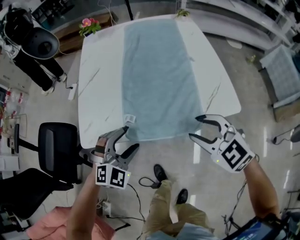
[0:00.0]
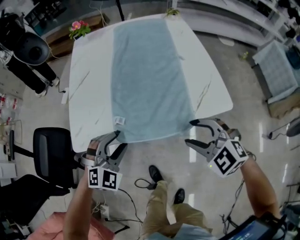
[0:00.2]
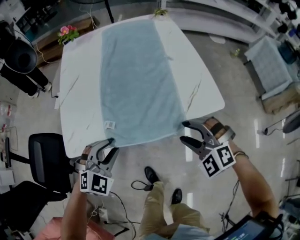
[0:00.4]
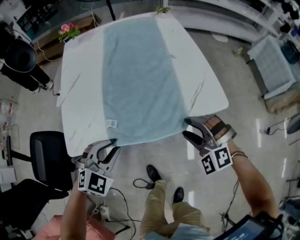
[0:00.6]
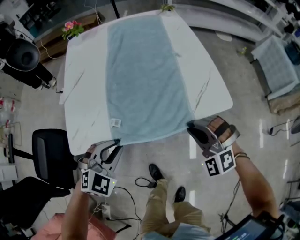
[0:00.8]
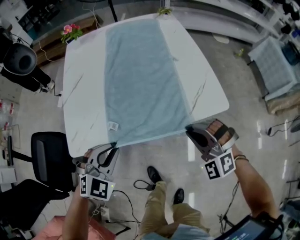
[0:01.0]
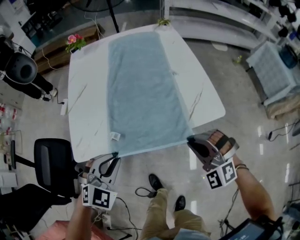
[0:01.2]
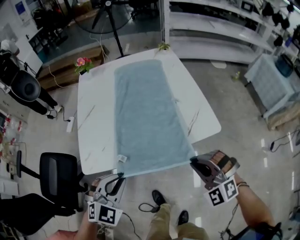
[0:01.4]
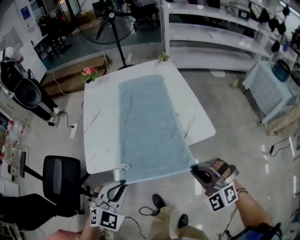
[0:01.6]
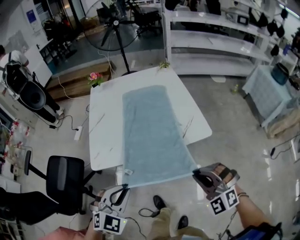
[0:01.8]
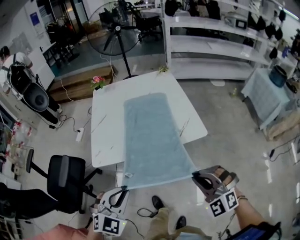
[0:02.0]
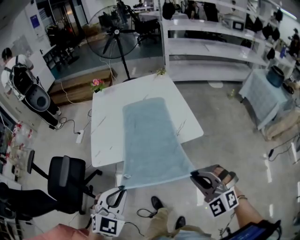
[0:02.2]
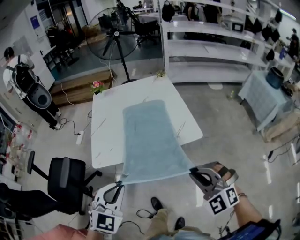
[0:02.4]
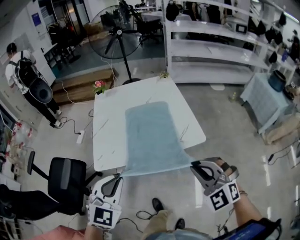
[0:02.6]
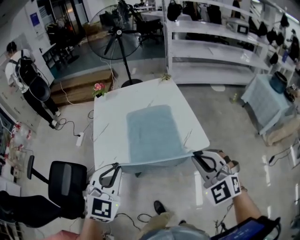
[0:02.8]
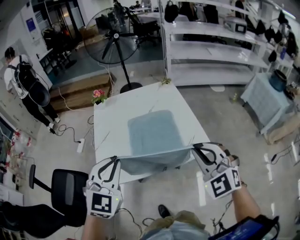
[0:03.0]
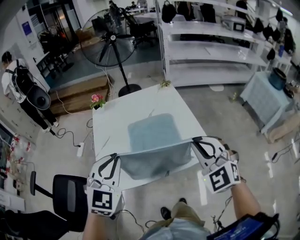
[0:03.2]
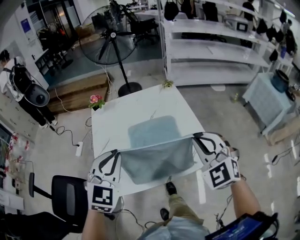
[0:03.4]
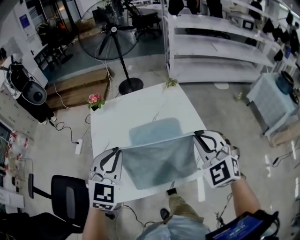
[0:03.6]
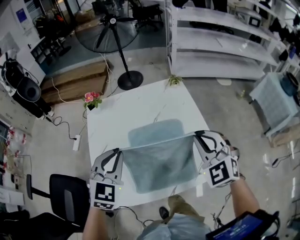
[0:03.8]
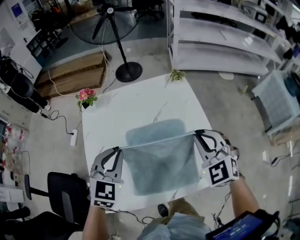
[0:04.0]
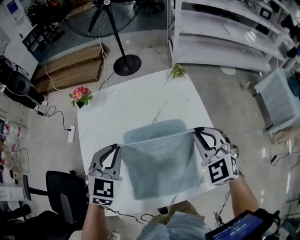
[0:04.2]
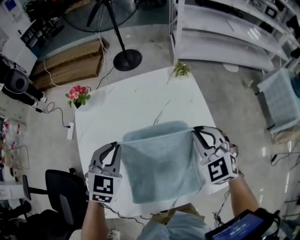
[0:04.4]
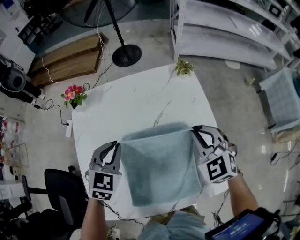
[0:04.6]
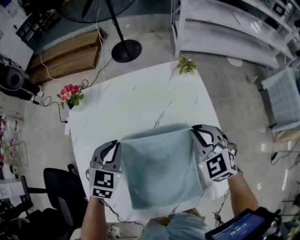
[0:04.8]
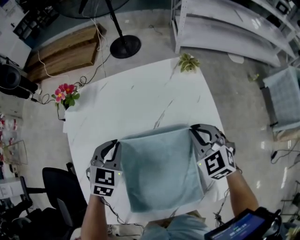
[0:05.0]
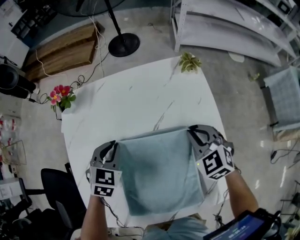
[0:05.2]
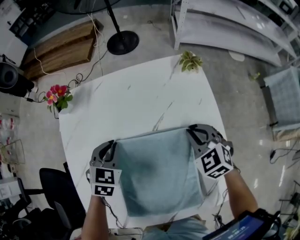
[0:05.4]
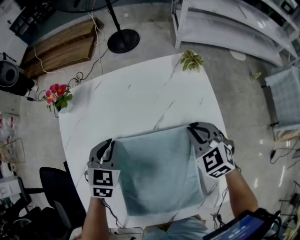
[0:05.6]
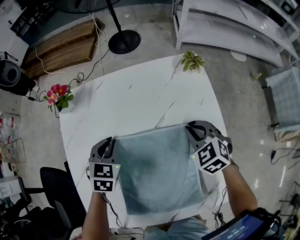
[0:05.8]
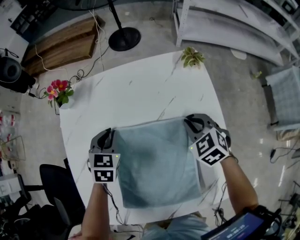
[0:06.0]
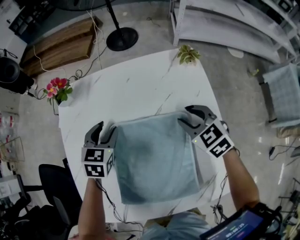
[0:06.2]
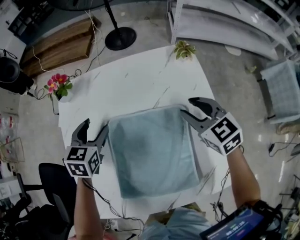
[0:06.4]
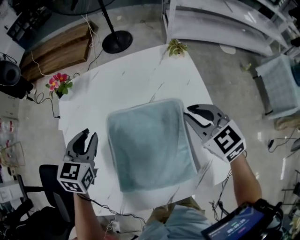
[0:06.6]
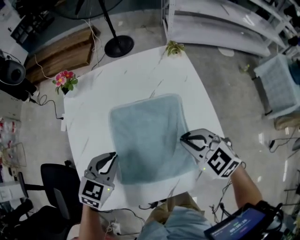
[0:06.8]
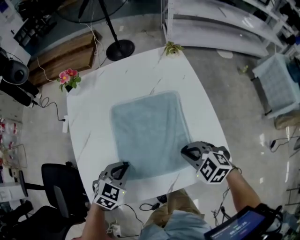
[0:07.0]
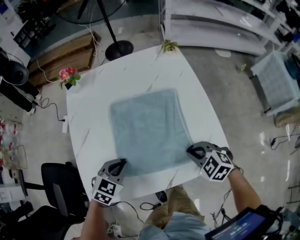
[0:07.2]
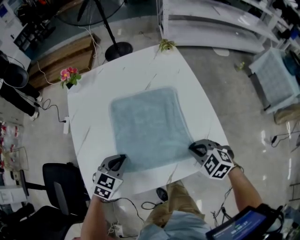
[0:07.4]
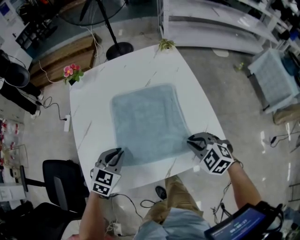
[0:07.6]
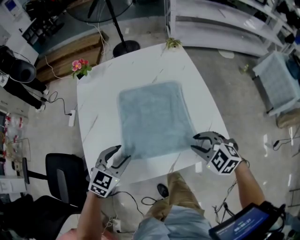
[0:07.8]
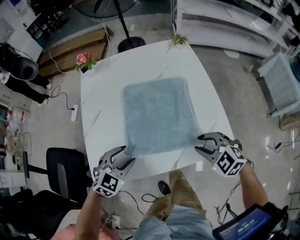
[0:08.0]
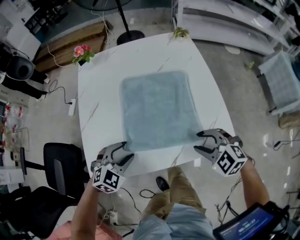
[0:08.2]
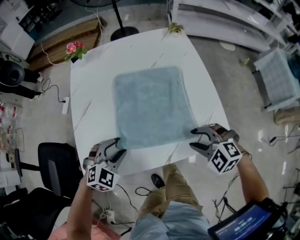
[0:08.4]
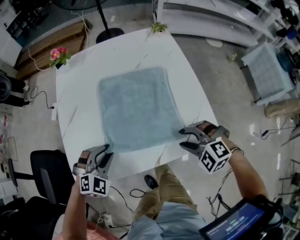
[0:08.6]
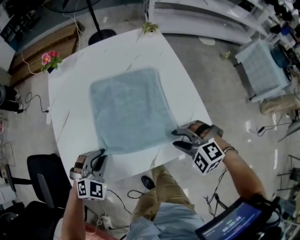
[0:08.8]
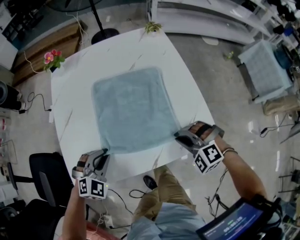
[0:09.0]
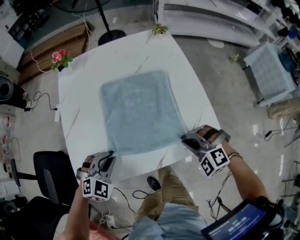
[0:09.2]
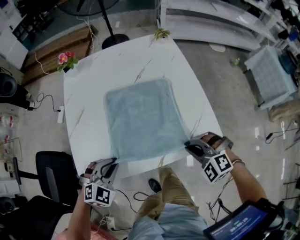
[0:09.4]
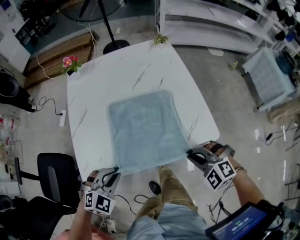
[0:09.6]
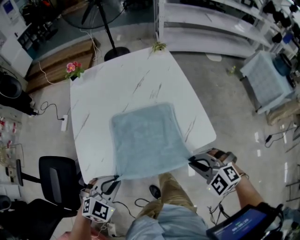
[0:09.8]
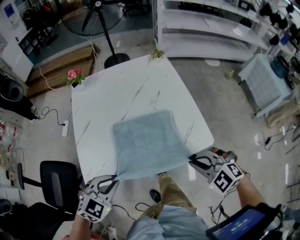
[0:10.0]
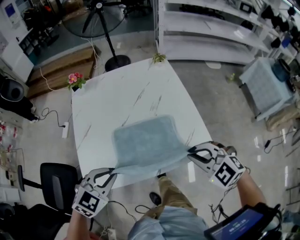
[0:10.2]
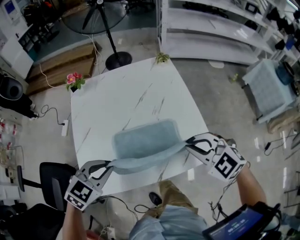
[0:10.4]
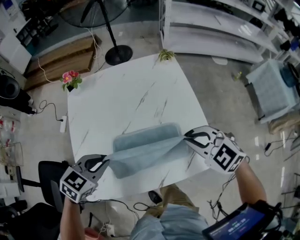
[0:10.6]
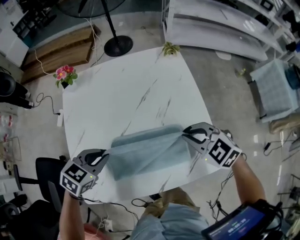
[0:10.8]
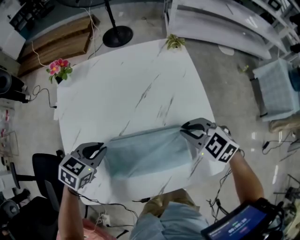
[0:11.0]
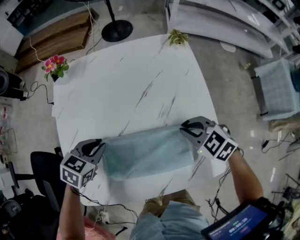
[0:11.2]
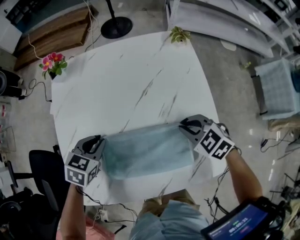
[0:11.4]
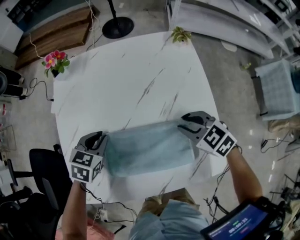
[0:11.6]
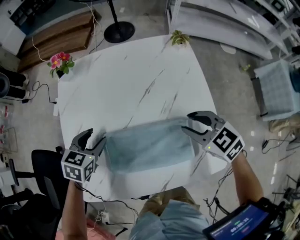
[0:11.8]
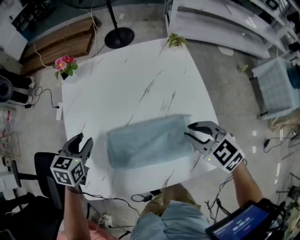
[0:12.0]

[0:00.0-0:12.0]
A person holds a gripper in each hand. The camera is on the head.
0:00.0 to 0:01.6: The right gripper is displaced backward by roughly 10 cm, turns by some 30 degrees, and closes up, while the left gripper goes some 15 cm upward and backward, and closes its fingers.
0:01.6 to 0:03.0: Both grippers travel together upward and forward, roughly 20 cm. The left gripper changes its angle by approximately 20 degrees; the right gripper changes its angle by about 20 degrees.
0:03.0 to 0:04.4: The left gripper moves forward and downward, approximately 35 cm, and rotates some 20 degrees. Meanwhile the right gripper travels forward by about 35 cm.
0:04.4 to 0:06.0: The two grippers go approximately 20 cm downward and forward. The left gripper changes its angle by about 20 degrees. Meanwhile the right gripper changes its angle by approximately 20 degrees.
0:06.0 to 0:07.6: Both grippers travel together backward, approximately 30 cm. The left gripper turns by about 30 degrees, and opens, then closes once more. The right gripper opens and closes again.
0:07.6 to 0:09.0: The left gripper moves backward, approximately 5 cm, swivels about 30 degrees, and opens and closes again; the right gripper rotates about 30 degrees, and opens, then closes again.
0:09.0 to 0:10.4: The grippers both shift upward by some 15 cm. The right gripper swivels about 30 degrees, while the left gripper swivels about 30 degrees.
0:10.4 to 0:12.0: The left gripper moves forward, to the left and downward, approximately 20 cm, turns by approximately 40 degrees, and opens up. Meanwhile the right gripper travels forward and downward by roughly 15 cm.

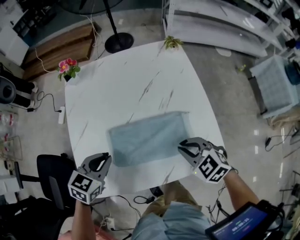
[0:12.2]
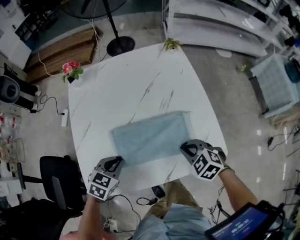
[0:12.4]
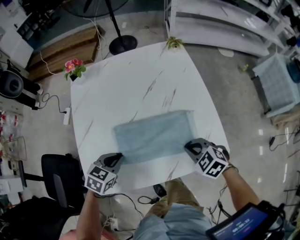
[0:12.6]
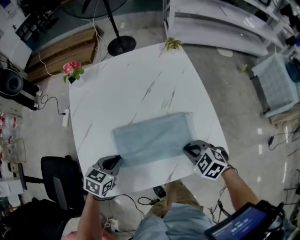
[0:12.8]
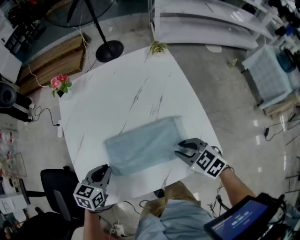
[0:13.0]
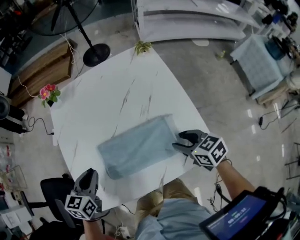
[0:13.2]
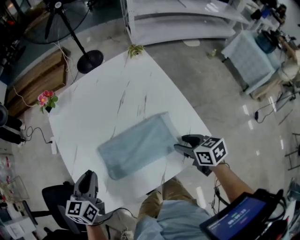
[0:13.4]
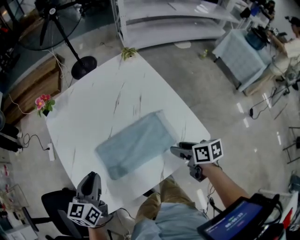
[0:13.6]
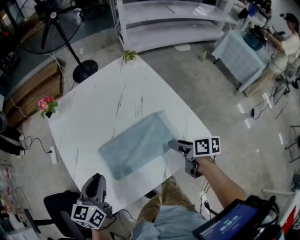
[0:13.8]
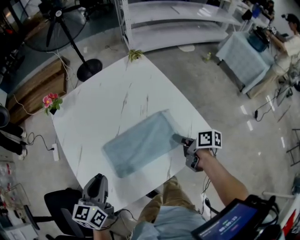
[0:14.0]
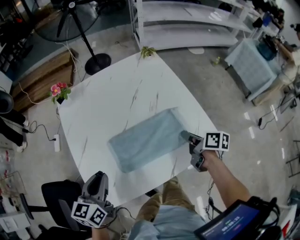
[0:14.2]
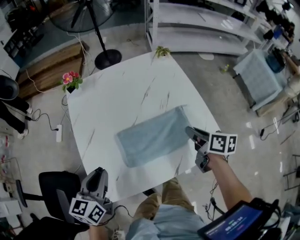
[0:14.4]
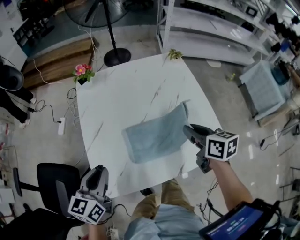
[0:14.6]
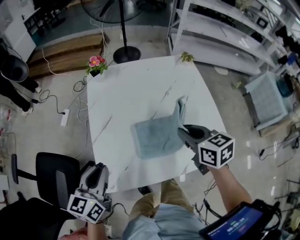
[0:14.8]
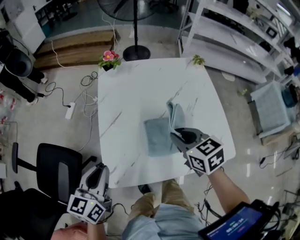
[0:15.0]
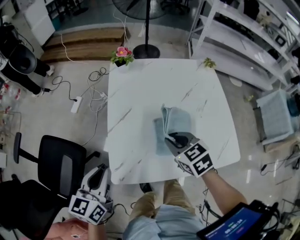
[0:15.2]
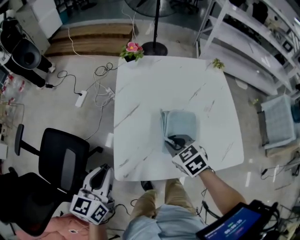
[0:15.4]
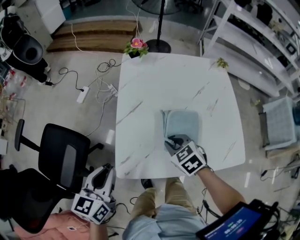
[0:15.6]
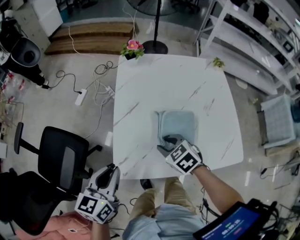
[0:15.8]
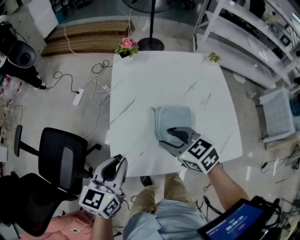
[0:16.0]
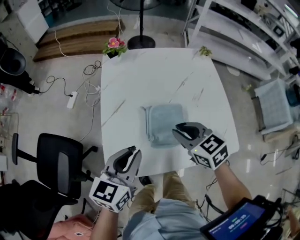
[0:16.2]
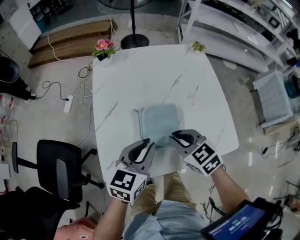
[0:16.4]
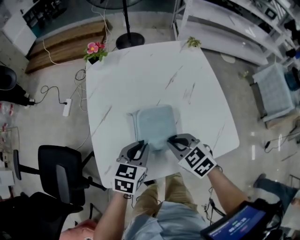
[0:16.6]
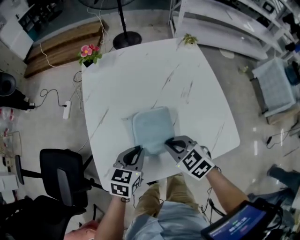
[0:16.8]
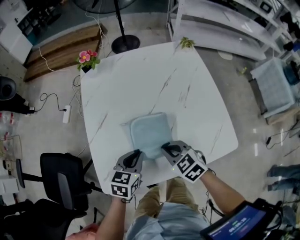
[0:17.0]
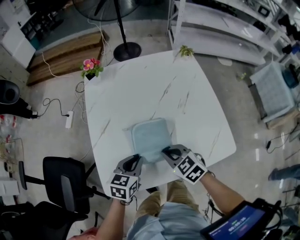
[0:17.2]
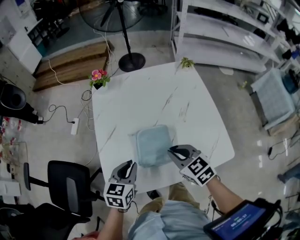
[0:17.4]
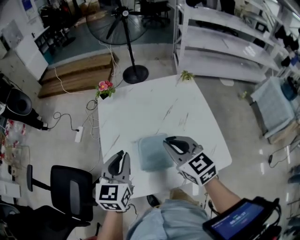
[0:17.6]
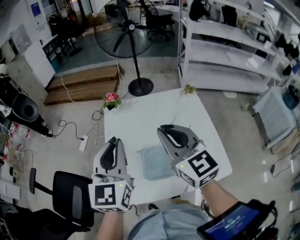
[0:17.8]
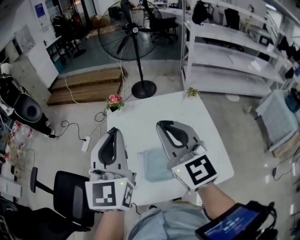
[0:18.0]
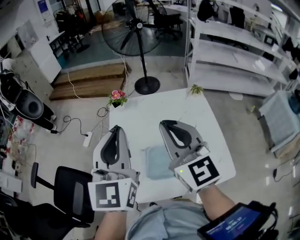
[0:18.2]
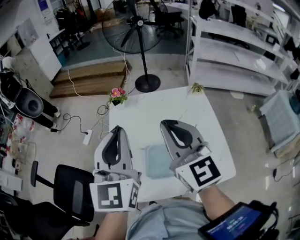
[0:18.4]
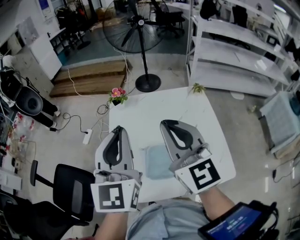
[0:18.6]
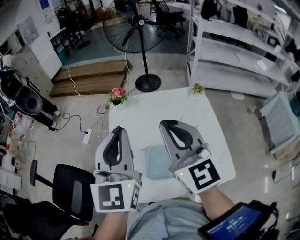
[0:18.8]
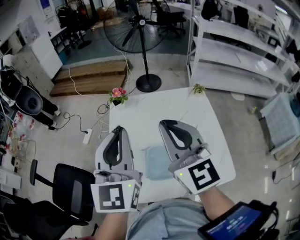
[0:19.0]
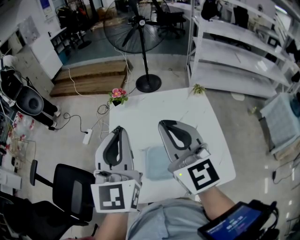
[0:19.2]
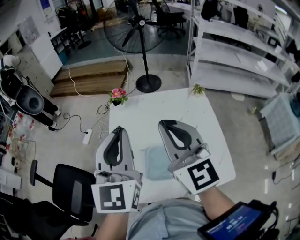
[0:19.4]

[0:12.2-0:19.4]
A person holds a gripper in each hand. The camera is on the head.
0:12.2 to 0:13.6: The right gripper is displaced to the right by approximately 5 cm, twists some 70 degrees clockwise, seen from behind, and opens its fingers. The left gripper is displaced upward by approximately 5 cm, and rotates approximately 20 degrees.
0:13.6 to 0:15.0: The left gripper moves to the left and backward, some 15 cm. The right gripper is displaced to the left and upward by roughly 25 cm, rolls counterclockwise, seen from behind, by about 50 degrees, and closes up.
0:15.0 to 0:16.6: The right gripper goes up and down, some 10 cm each way, reversing 2 times, and opens and closes again. Meanwhile the left gripper moves to the right and downward, approximately 20 cm, and rotates roughly 30 degrees.
0:16.6 to 0:18.0: Both grippers move upward, about 35 cm. The left gripper tips its fingers upward by roughly 40 degrees; the right gripper tips its fingers upward by about 50 degrees.
0:18.0 to 0:19.4: The grippers make only small movements.

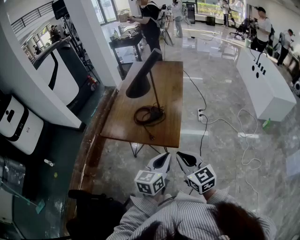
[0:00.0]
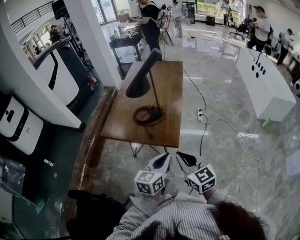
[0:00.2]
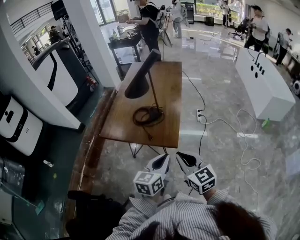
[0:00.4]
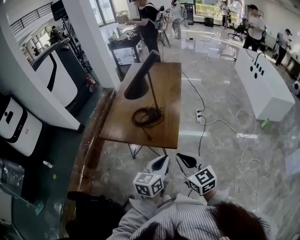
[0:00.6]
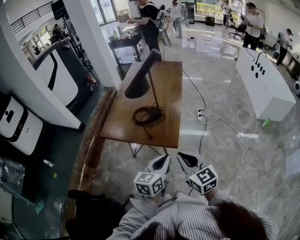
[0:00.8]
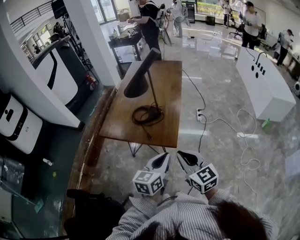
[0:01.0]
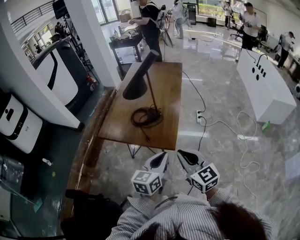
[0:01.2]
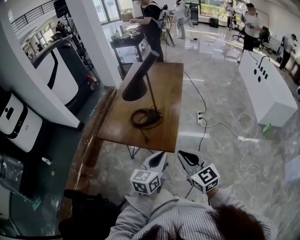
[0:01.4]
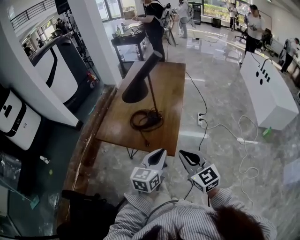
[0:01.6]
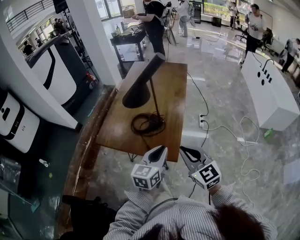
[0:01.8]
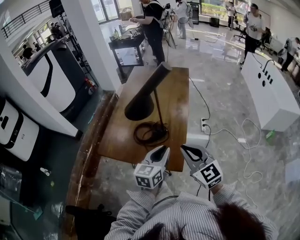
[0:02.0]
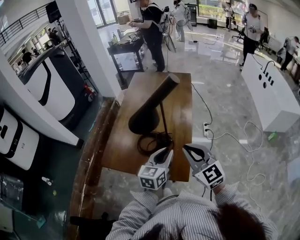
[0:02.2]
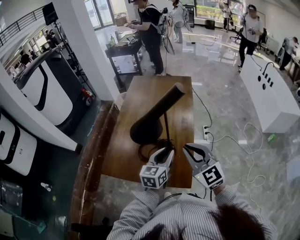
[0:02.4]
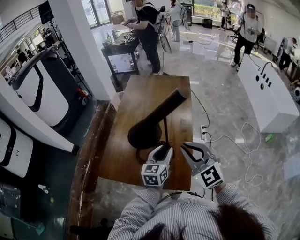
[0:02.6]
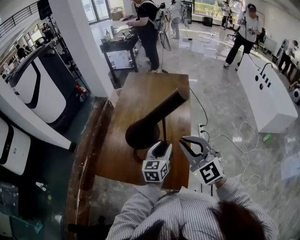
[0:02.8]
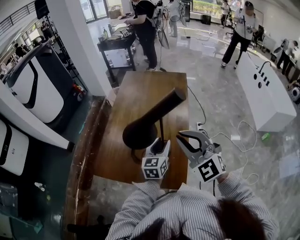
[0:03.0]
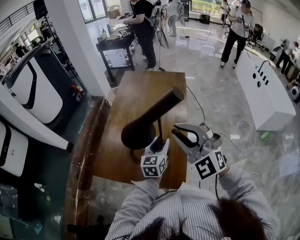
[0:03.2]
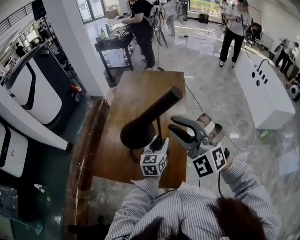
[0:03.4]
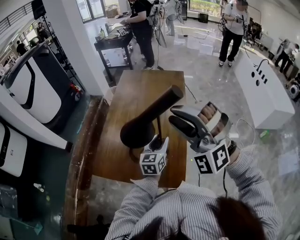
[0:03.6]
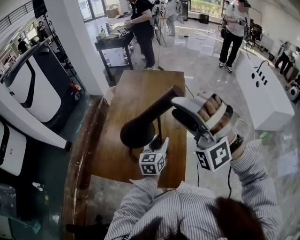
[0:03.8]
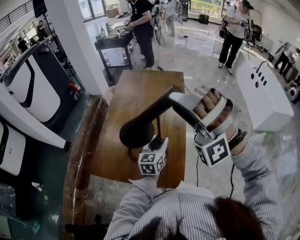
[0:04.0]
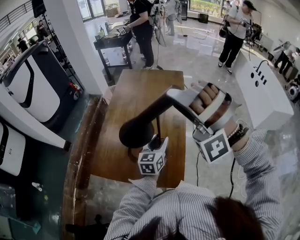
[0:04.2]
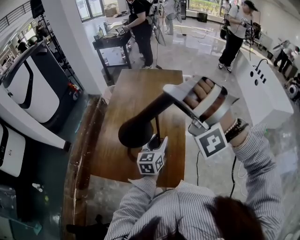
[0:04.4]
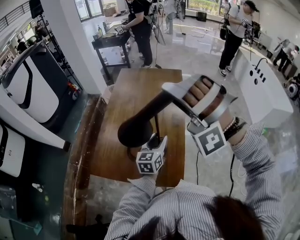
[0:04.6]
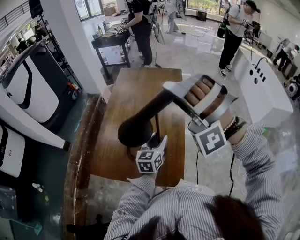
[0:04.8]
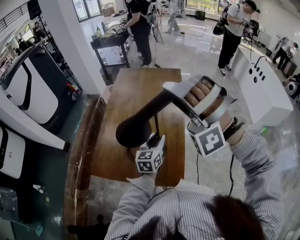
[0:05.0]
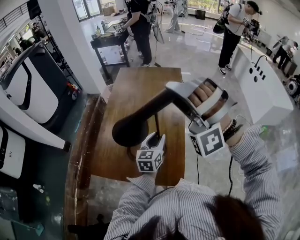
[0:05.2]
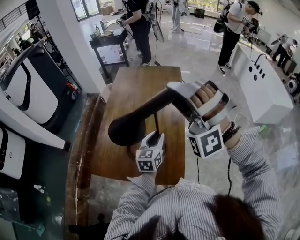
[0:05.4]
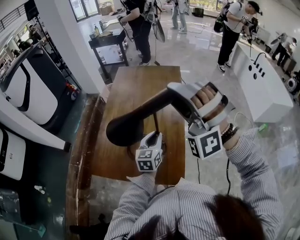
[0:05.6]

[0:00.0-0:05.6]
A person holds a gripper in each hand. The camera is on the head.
0:00.0 to 0:01.4: The grippers move only a little.
0:01.4 to 0:02.8: The grippers both shift forward by about 30 cm. The left gripper opens up; the right gripper changes its angle by approximately 30 degrees.
0:02.8 to 0:04.2: The right gripper is displaced upward and forward by roughly 15 cm, twists about 80 degrees counterclockwise, seen from behind, and opens its fingers.
0:04.2 to 0:05.6: The left gripper closes its fingers.
